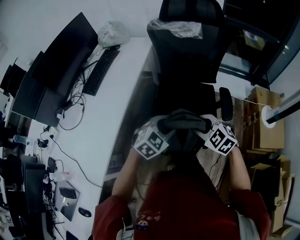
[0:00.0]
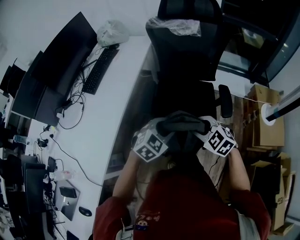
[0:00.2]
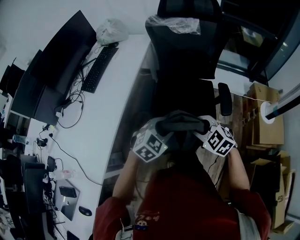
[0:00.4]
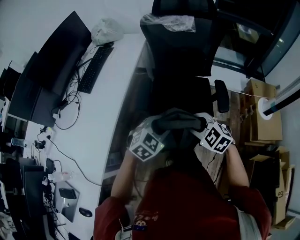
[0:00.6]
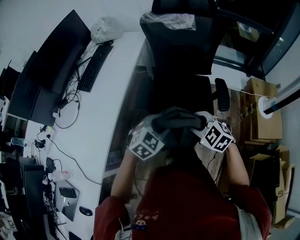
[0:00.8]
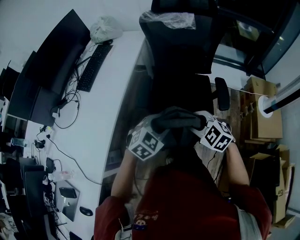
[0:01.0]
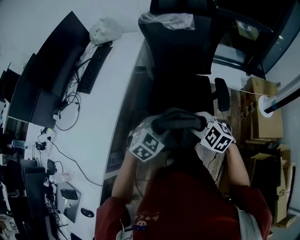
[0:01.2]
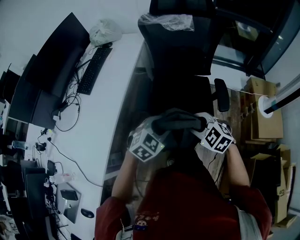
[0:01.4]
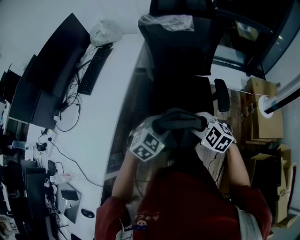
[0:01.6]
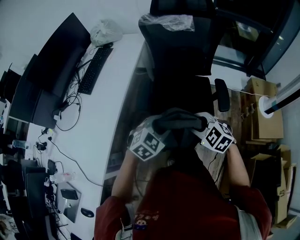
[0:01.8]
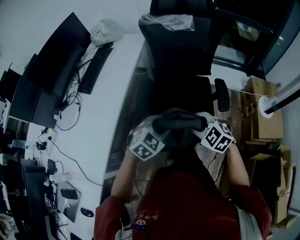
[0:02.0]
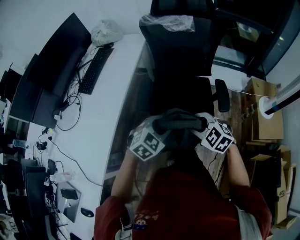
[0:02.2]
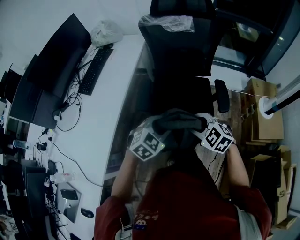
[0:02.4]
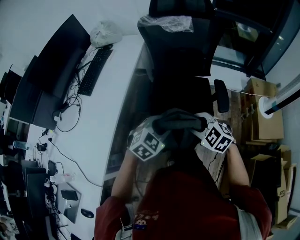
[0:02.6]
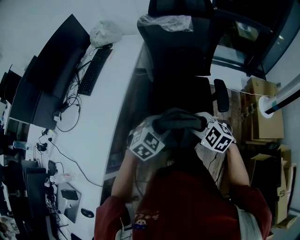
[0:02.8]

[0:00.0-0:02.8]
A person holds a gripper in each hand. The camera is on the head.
0:00.0 to 0:01.4: The grippers move only a little.
0:01.4 to 0:02.8: Neither gripper changes place.

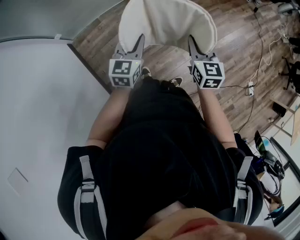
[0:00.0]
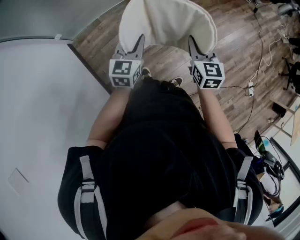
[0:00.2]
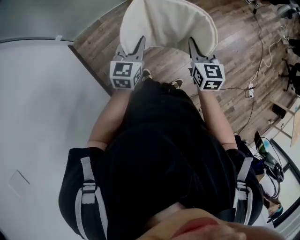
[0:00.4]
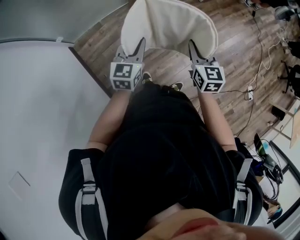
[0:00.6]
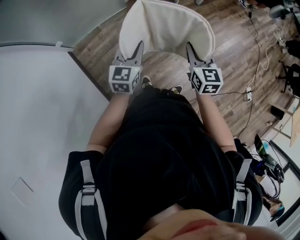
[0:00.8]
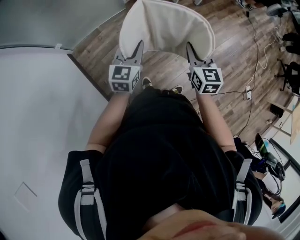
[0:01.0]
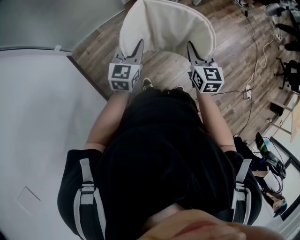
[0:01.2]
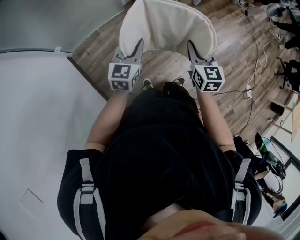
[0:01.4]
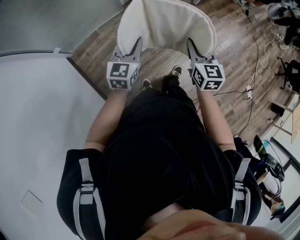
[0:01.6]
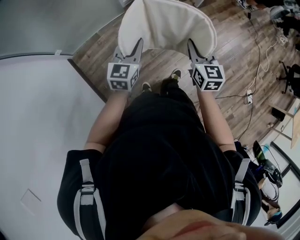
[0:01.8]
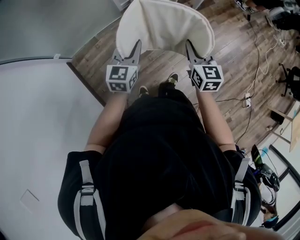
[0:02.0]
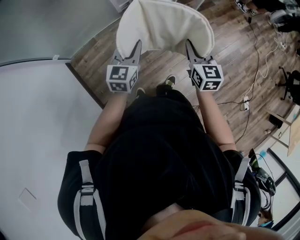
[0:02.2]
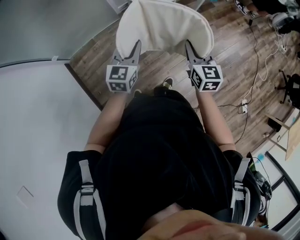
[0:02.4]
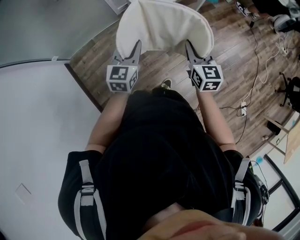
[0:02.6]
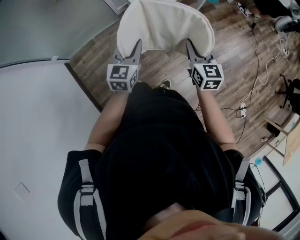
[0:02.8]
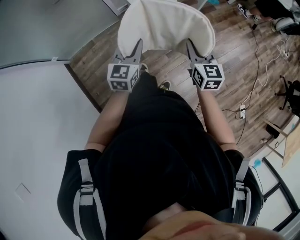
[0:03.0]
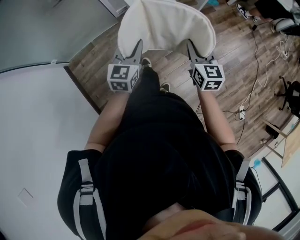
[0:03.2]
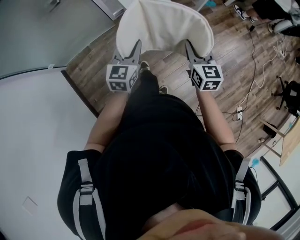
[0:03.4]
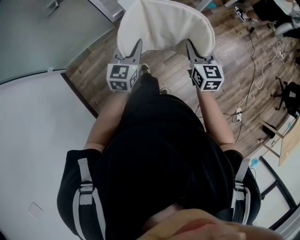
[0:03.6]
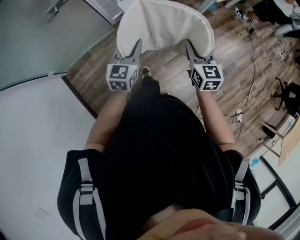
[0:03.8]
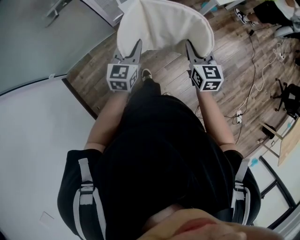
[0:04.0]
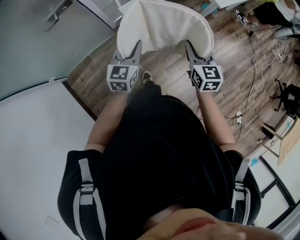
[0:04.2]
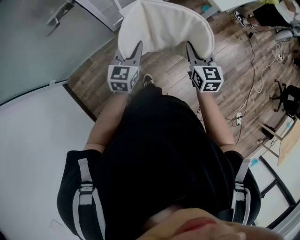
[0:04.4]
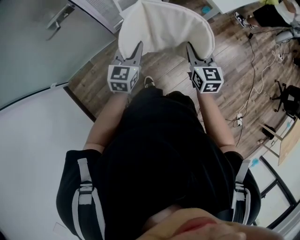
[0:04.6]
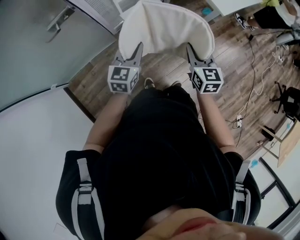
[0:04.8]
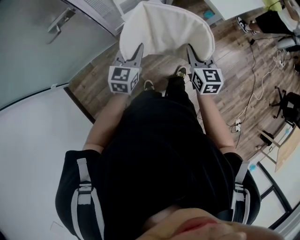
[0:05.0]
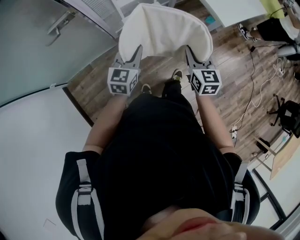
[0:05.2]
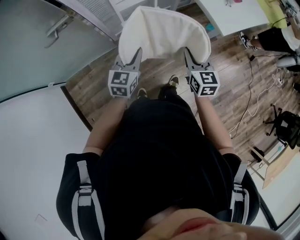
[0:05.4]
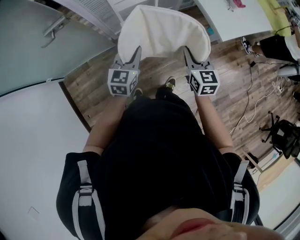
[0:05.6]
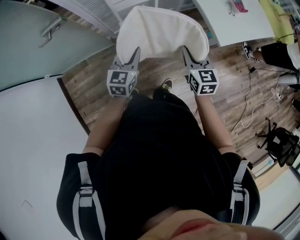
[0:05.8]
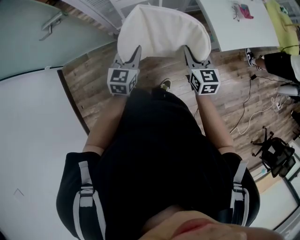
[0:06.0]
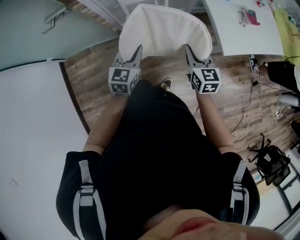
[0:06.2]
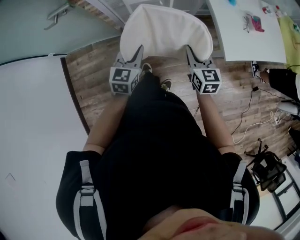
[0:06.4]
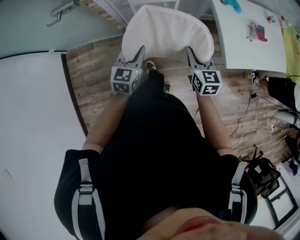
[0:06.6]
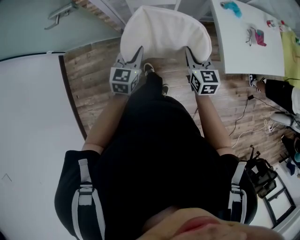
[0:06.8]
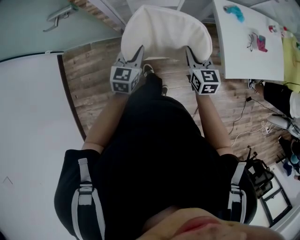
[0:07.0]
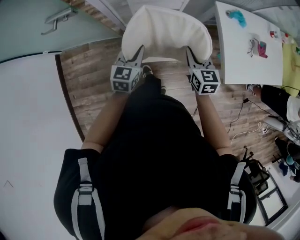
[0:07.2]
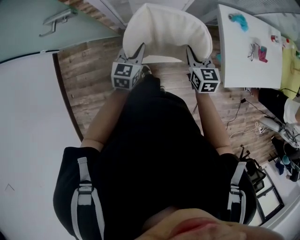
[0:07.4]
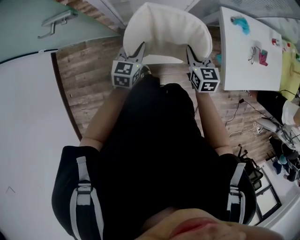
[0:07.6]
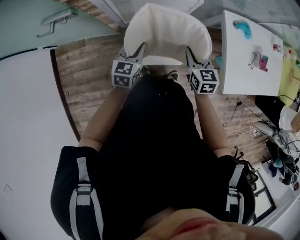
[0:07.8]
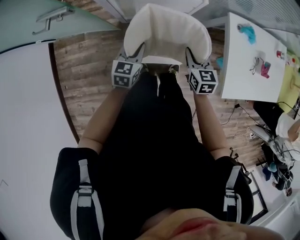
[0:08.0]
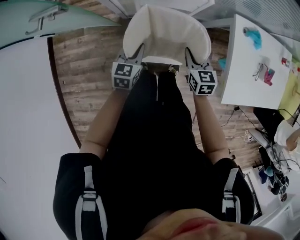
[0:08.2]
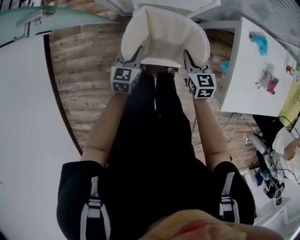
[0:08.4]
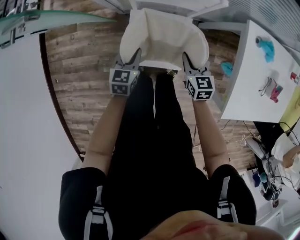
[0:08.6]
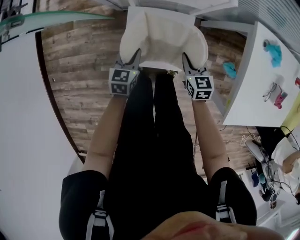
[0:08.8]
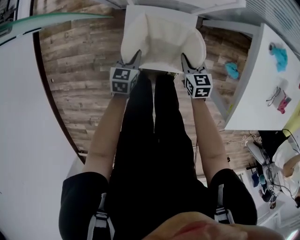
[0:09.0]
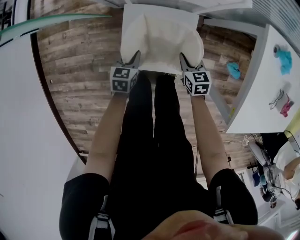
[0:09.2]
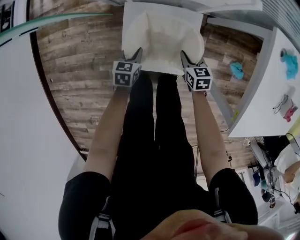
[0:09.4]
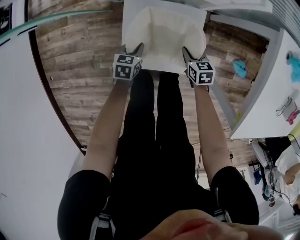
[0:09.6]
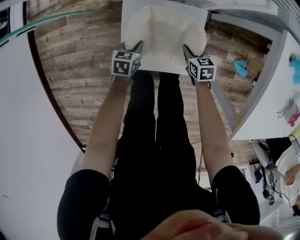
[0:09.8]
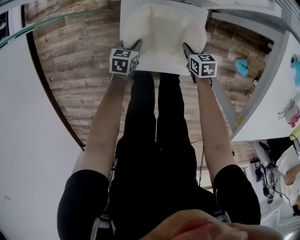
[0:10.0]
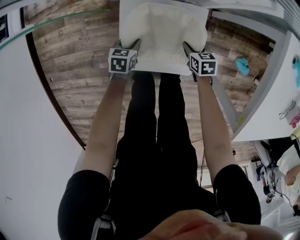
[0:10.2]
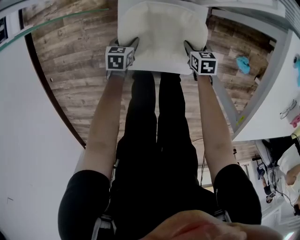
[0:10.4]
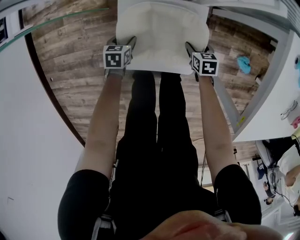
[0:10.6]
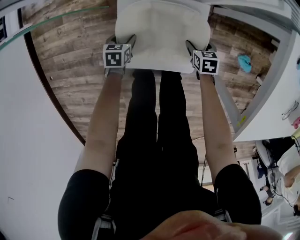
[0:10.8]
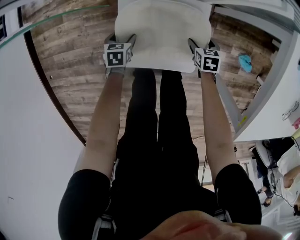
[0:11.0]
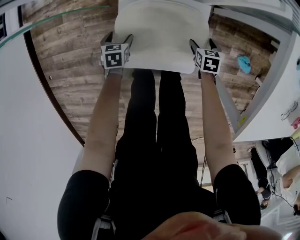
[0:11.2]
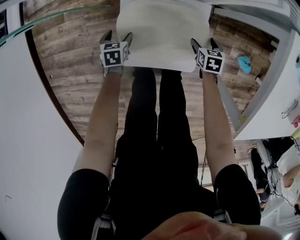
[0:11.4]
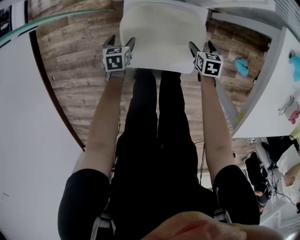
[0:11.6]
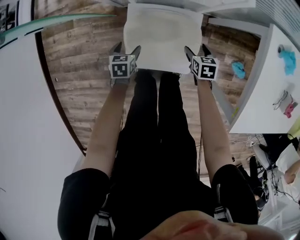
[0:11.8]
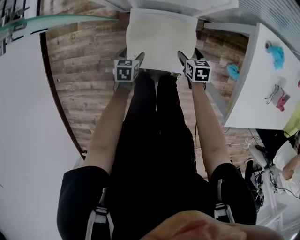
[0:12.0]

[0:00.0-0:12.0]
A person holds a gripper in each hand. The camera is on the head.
0:00.0 to 0:01.6: The grippers both shift forward by roughly 5 cm.
0:01.6 to 0:03.0: Both grippers travel together to the right and forward, some 25 cm.
0:03.0 to 0:04.4: The grippers both shift forward by some 25 cm.
0:04.4 to 0:06.0: The grippers both shift forward and to the right by approximately 25 cm.
0:06.0 to 0:07.6: The left gripper goes roughly 20 cm forward and downward. Meanwhile the right gripper shifts roughly 25 cm forward.
0:07.6 to 0:09.0: Both grippers move downward, some 35 cm. The left gripper turns by approximately 20 degrees.
0:09.0 to 0:10.4: The two grippers go about 20 cm downward. The left gripper opens up. The right gripper opens its fingers.
0:10.4 to 0:12.0: The two grippers go roughly 15 cm upward. The left gripper opens up; the right gripper opens its fingers.

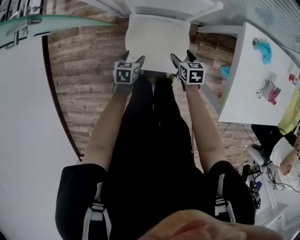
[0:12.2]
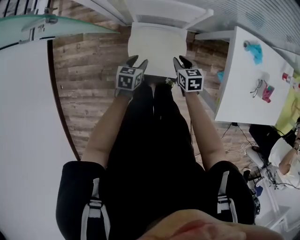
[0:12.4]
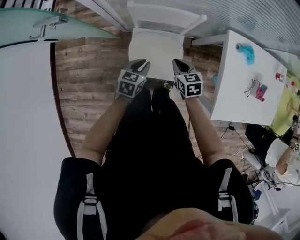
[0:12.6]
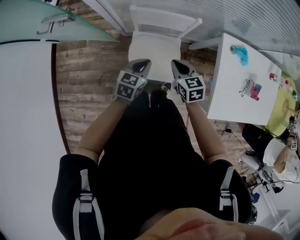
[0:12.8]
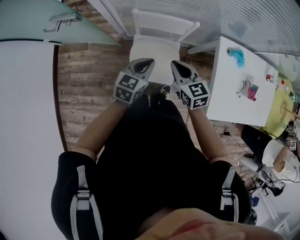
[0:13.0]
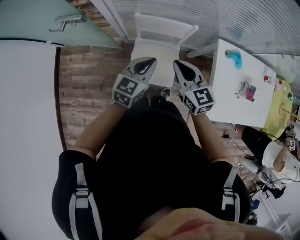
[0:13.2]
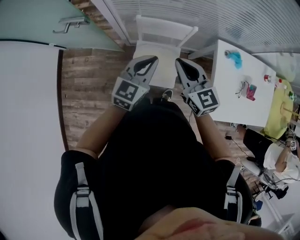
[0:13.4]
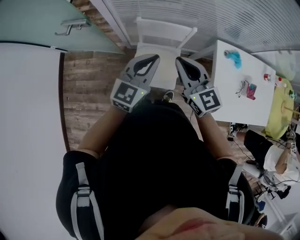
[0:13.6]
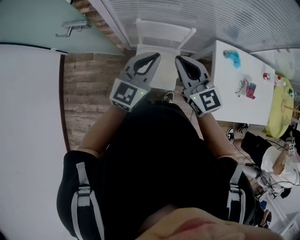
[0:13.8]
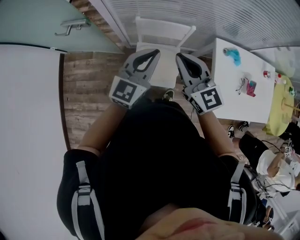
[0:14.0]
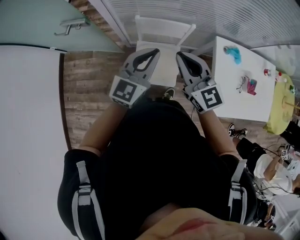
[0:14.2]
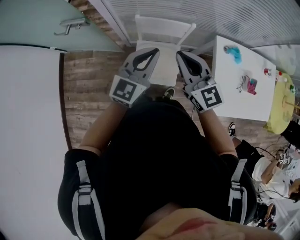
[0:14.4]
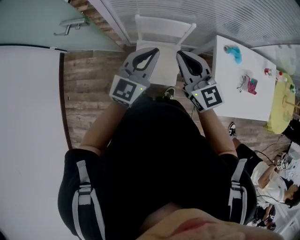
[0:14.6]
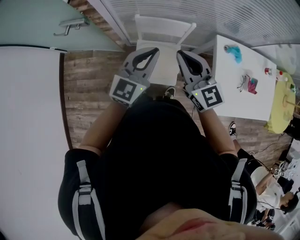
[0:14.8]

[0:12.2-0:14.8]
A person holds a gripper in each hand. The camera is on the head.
0:12.2 to 0:13.4: Both grippers travel together upward, some 50 cm. The left gripper angles its fingers upward, by roughly 40 degrees, and closes its fingers; the right gripper tilts its fingers approximately 40 degrees upward, and closes its fingers.
0:13.4 to 0:14.8: The grippers both shift upward by some 5 cm.

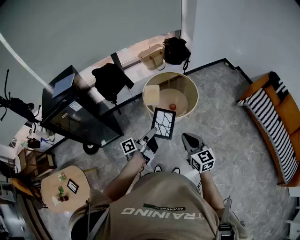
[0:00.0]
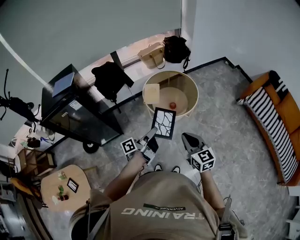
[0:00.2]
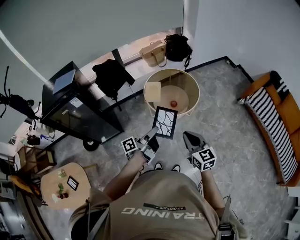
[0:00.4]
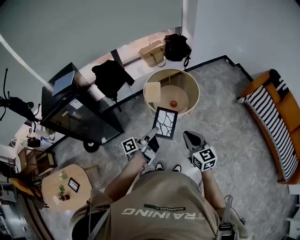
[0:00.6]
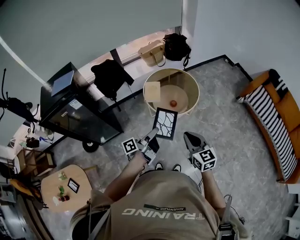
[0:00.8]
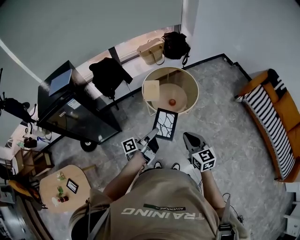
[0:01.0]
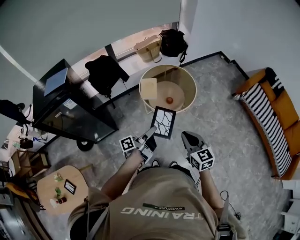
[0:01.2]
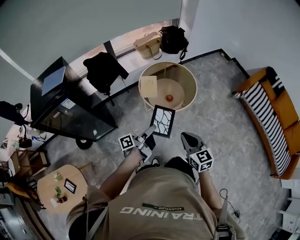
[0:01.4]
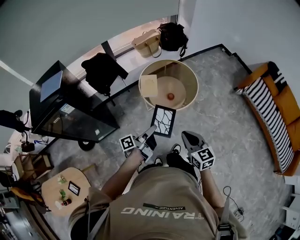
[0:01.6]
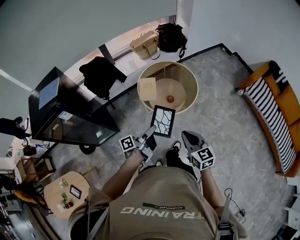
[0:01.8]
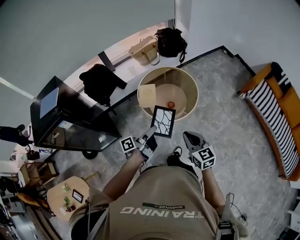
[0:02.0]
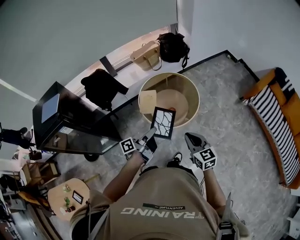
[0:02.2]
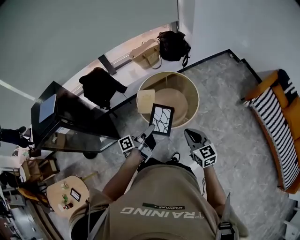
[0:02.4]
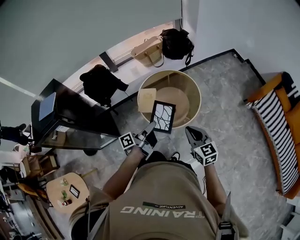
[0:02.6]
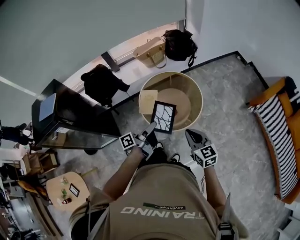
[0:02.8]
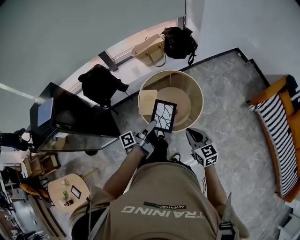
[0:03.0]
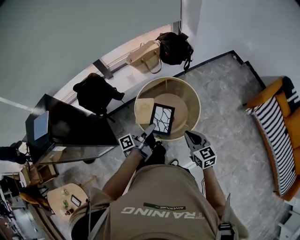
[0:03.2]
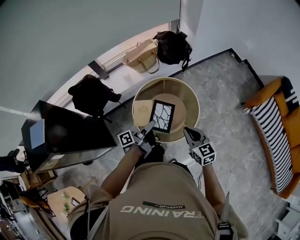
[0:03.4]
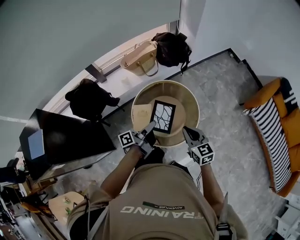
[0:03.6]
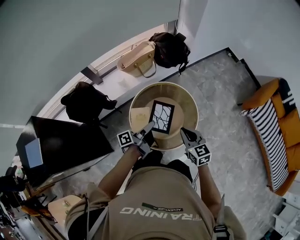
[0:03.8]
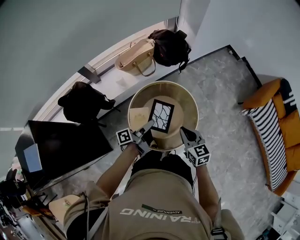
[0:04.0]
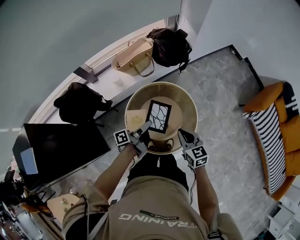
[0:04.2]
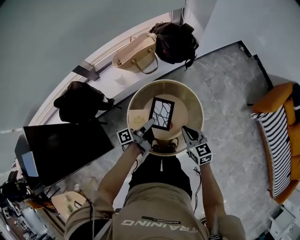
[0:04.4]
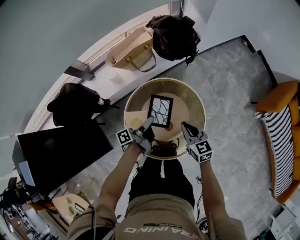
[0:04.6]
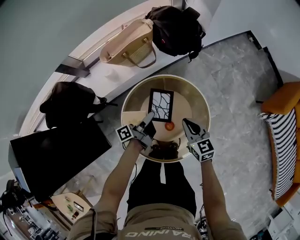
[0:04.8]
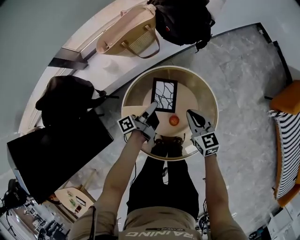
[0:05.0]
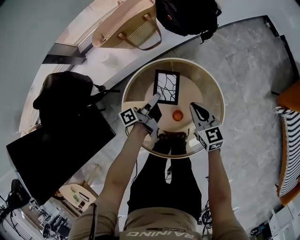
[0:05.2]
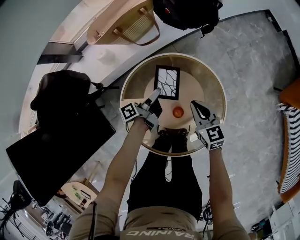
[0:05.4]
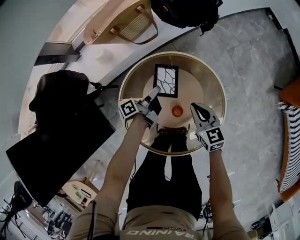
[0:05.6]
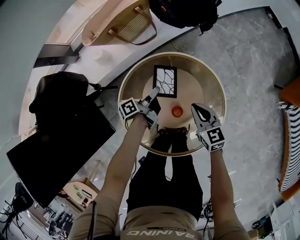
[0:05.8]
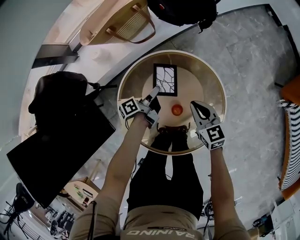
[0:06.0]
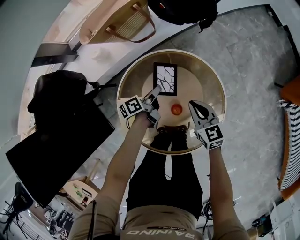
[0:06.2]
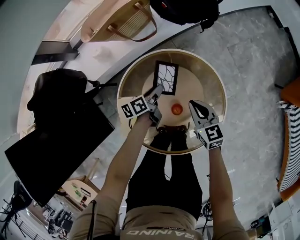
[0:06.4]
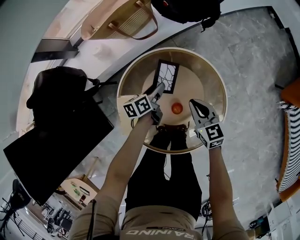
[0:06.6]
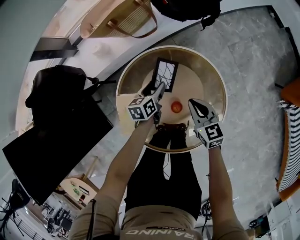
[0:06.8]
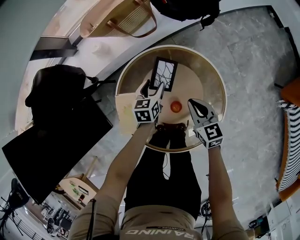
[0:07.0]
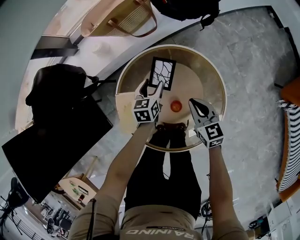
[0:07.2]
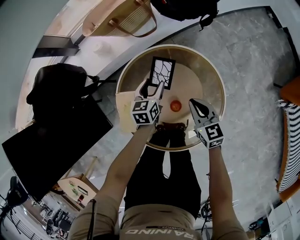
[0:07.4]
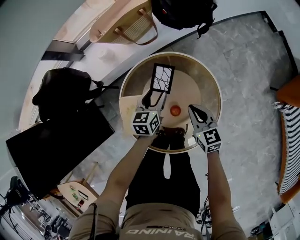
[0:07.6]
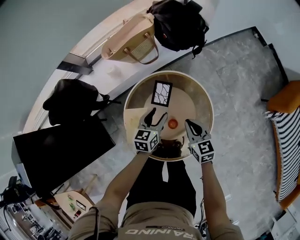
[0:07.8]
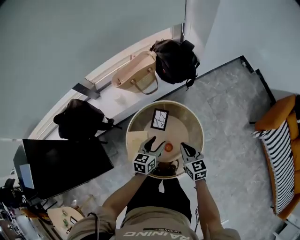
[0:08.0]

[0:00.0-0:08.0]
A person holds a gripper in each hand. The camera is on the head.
0:00.0 to 0:01.6: The right gripper shifts by about 5 cm. Meanwhile the left gripper goes approximately 5 cm downward.
0:01.6 to 0:03.2: The grippers both shift forward by some 30 cm.
0:03.2 to 0:04.8: Both grippers travel together forward and downward, about 35 cm.
0:04.8 to 0:06.4: Both grippers travel together downward, roughly 15 cm. The left gripper changes its angle by some 40 degrees.
0:06.4 to 0:08.0: Both grippers move upward and backward, some 20 cm. The left gripper twists roughly 40 degrees clockwise, seen from behind, and opens up.
